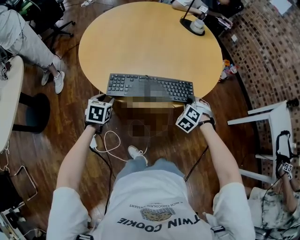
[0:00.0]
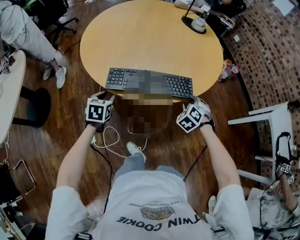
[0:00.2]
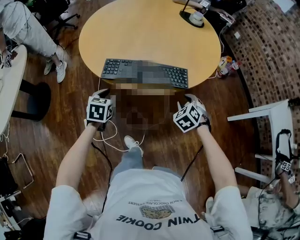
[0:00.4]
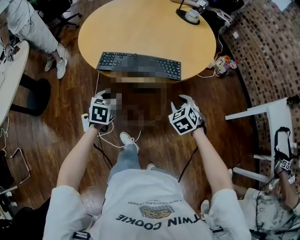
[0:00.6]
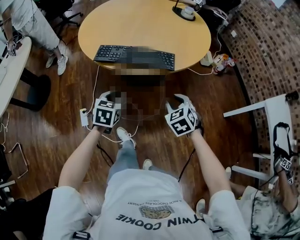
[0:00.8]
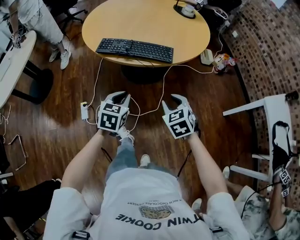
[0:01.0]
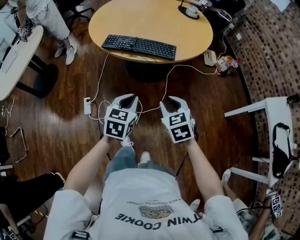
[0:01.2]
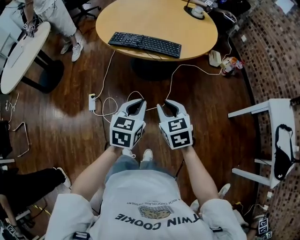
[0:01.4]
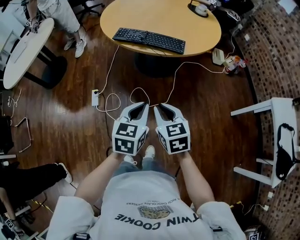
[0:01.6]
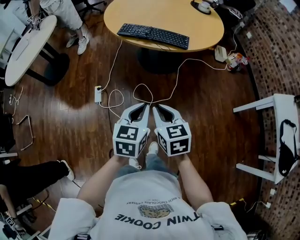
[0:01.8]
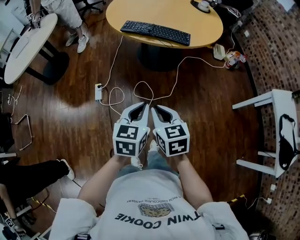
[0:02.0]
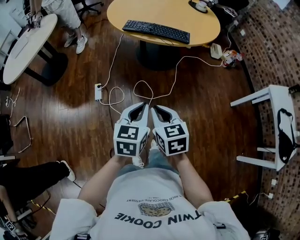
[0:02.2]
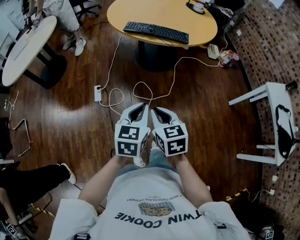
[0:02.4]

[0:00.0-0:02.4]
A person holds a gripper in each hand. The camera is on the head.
0:00.0 to 0:01.2: The right gripper goes approximately 30 cm backward, and changes its angle by some 50 degrees; the left gripper shifts roughly 40 cm backward and to the right, and closes its fingers.
0:01.2 to 0:02.4: Both grippers move backward and to the left, some 25 cm.

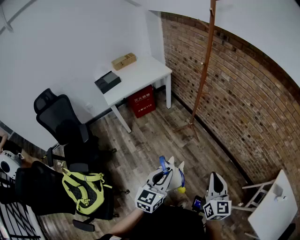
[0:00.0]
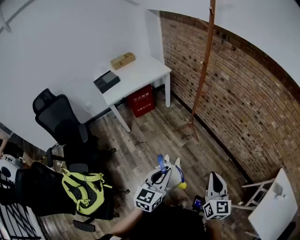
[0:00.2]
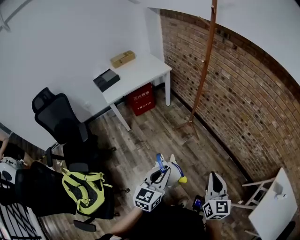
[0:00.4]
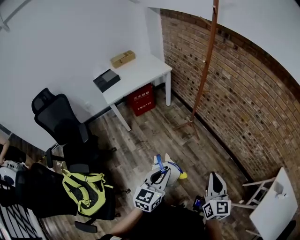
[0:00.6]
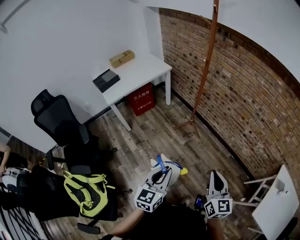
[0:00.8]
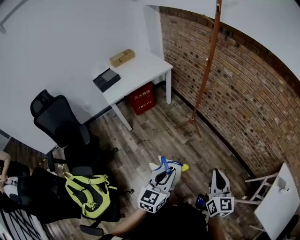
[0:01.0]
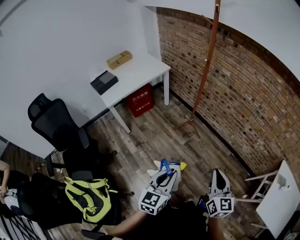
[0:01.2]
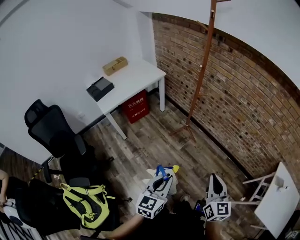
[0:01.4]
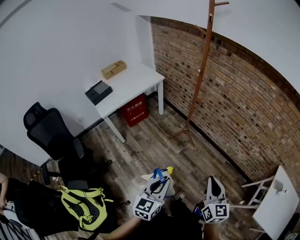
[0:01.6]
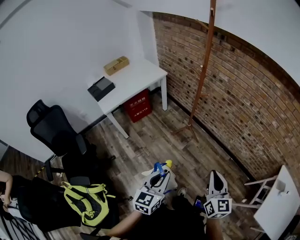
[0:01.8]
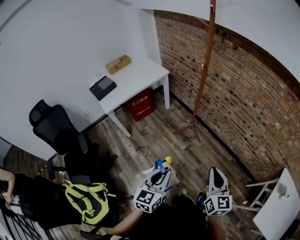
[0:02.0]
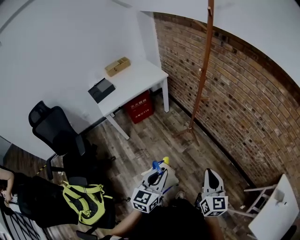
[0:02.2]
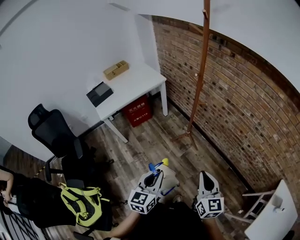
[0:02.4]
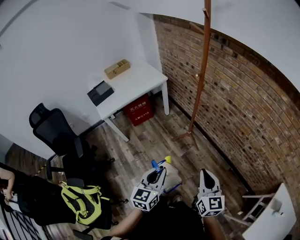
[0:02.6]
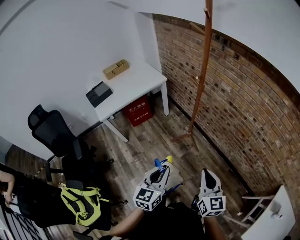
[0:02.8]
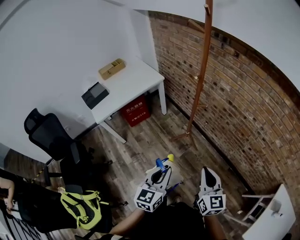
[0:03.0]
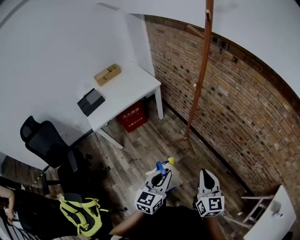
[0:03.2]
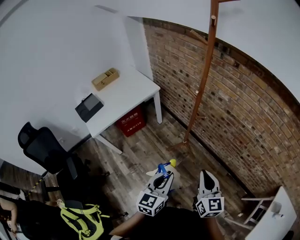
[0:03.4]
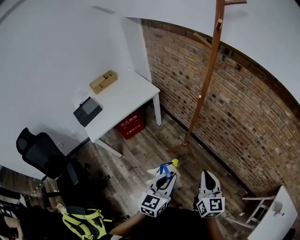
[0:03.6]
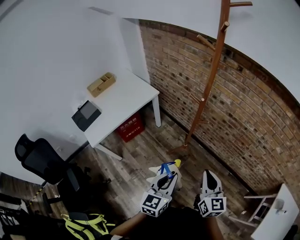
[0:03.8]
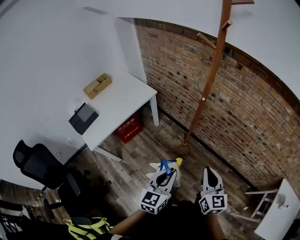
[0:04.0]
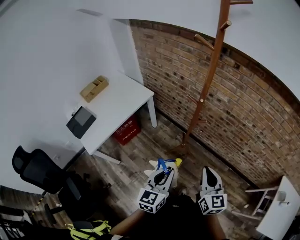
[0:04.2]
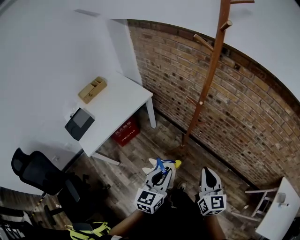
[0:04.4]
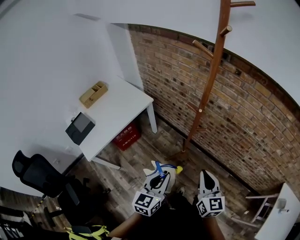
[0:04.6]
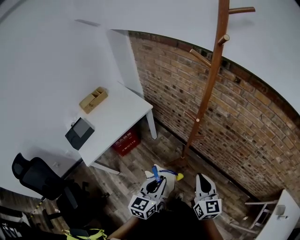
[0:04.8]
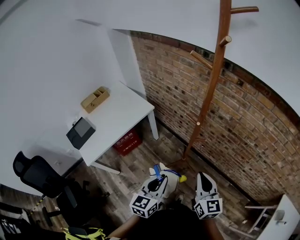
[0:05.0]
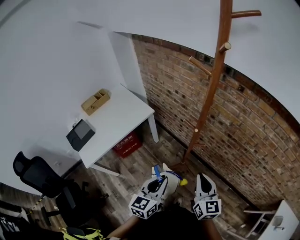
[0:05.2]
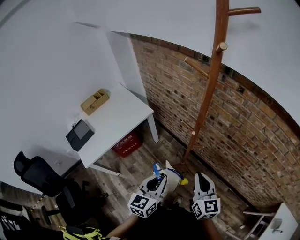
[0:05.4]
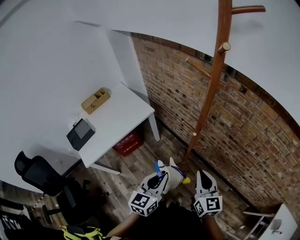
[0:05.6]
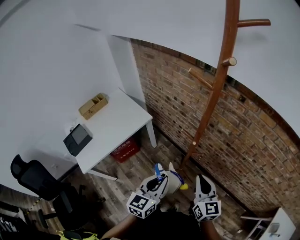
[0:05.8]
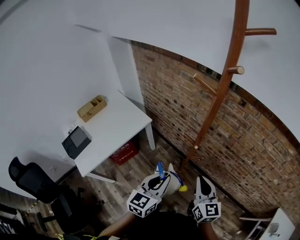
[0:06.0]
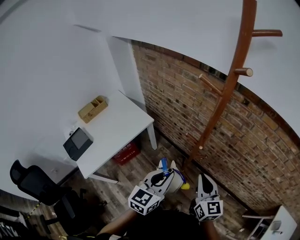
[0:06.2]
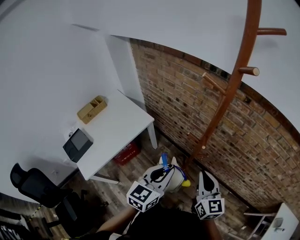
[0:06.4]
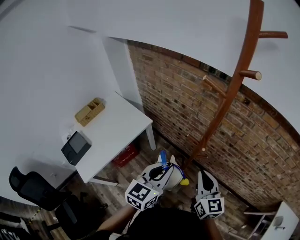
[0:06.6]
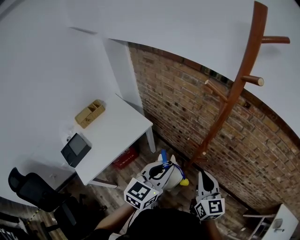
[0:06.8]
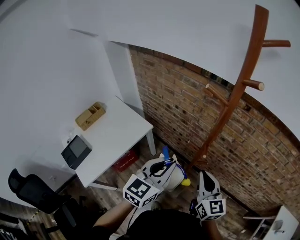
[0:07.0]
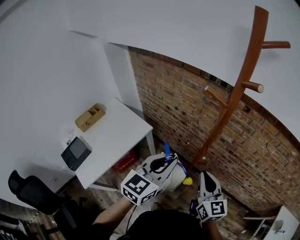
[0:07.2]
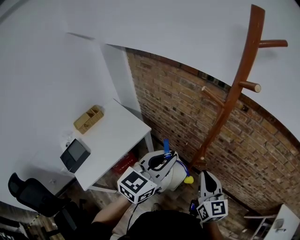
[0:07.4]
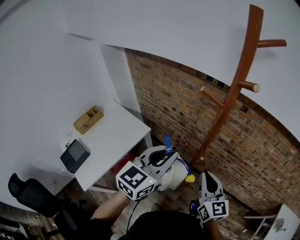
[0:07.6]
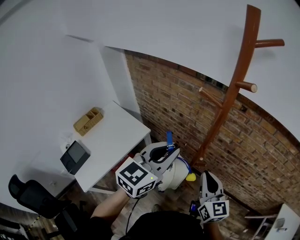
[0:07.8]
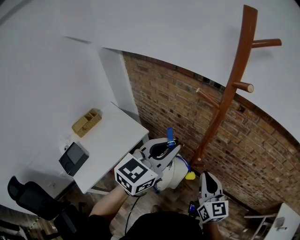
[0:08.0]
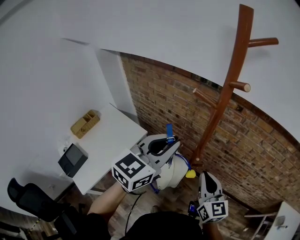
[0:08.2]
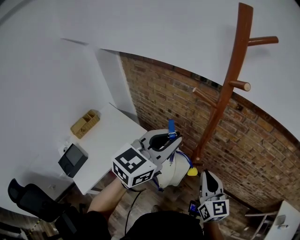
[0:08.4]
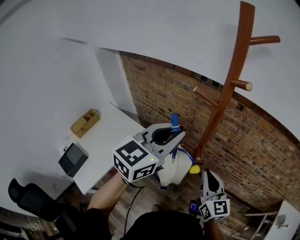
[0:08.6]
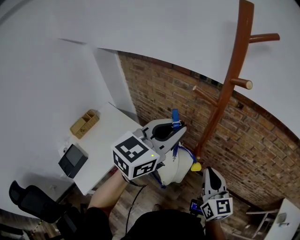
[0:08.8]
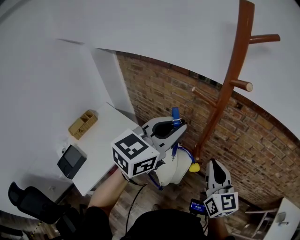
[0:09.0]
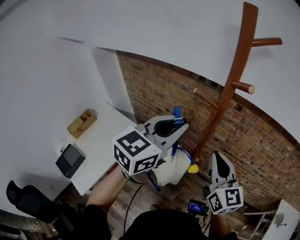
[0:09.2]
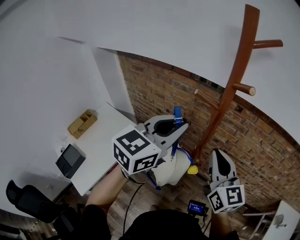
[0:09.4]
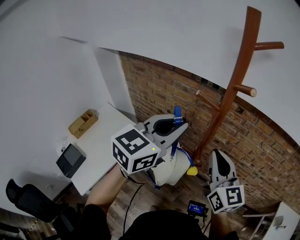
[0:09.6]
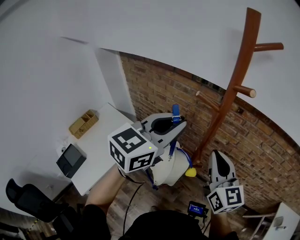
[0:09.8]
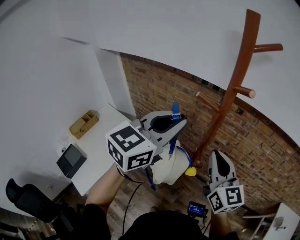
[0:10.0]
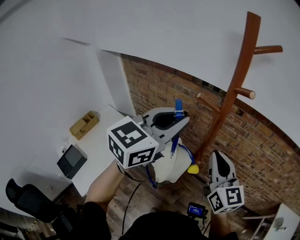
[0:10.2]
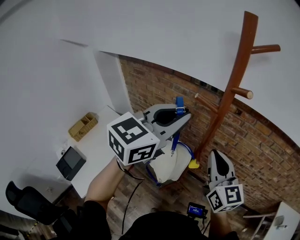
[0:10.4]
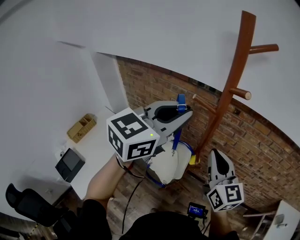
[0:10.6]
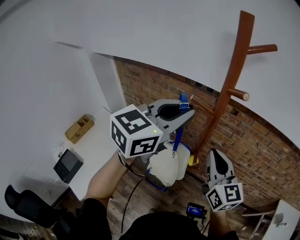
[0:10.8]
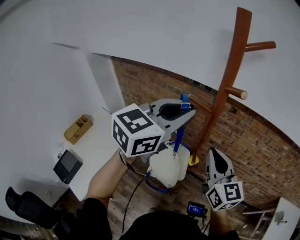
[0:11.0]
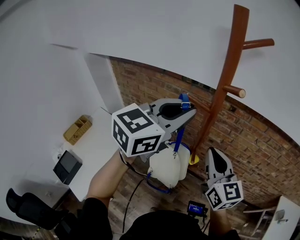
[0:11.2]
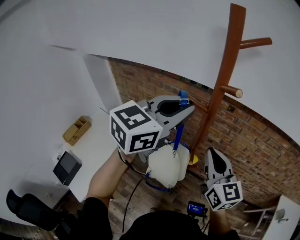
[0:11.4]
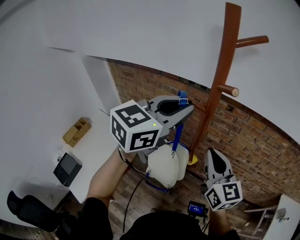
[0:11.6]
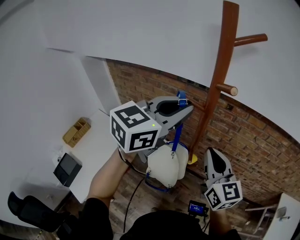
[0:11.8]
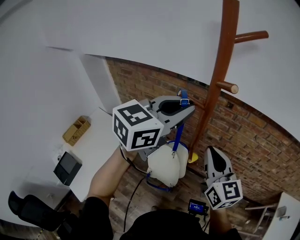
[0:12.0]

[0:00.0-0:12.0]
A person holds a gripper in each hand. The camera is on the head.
0:00.0 to 0:01.6: The two grippers go approximately 5 cm to the left.
0:01.6 to 0:03.0: Both grippers travel together forward, some 20 cm.
0:03.0 to 0:04.4: The two grippers go approximately 15 cm forward and to the left.
0:04.4 to 0:06.0: The grippers both shift forward by approximately 15 cm.
0:06.0 to 0:07.6: The left gripper shifts about 20 cm upward and forward; the right gripper is displaced upward by roughly 5 cm.
0:07.6 to 0:09.0: The left gripper shifts some 10 cm upward and forward, while the right gripper goes some 5 cm upward.
0:09.0 to 0:10.4: The grippers both shift upward by some 5 cm.
0:10.4 to 0:12.0: The left gripper changes place by approximately 5 cm.

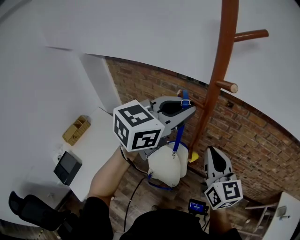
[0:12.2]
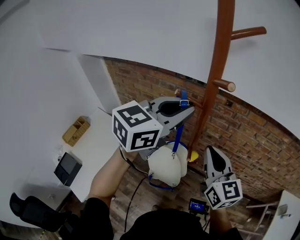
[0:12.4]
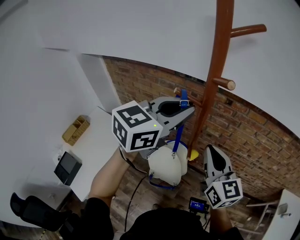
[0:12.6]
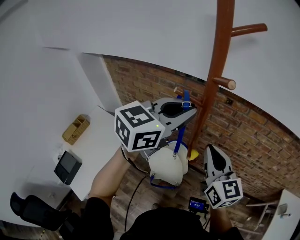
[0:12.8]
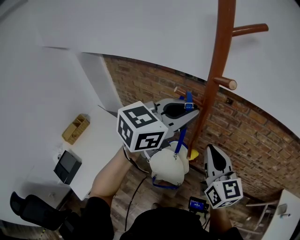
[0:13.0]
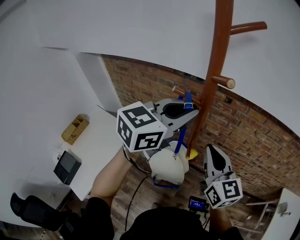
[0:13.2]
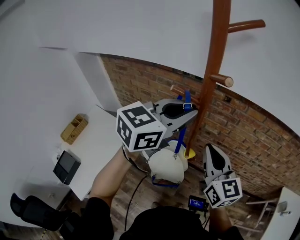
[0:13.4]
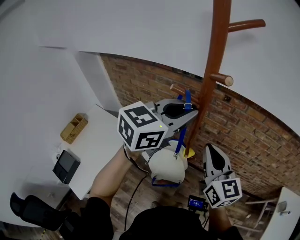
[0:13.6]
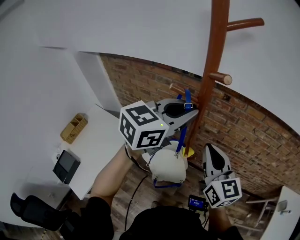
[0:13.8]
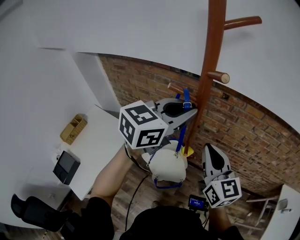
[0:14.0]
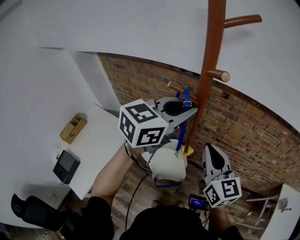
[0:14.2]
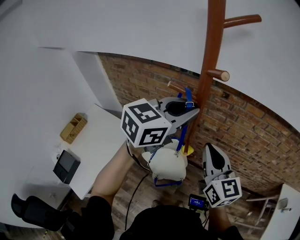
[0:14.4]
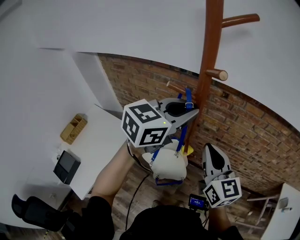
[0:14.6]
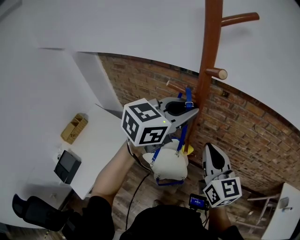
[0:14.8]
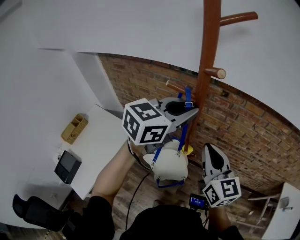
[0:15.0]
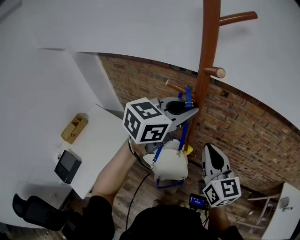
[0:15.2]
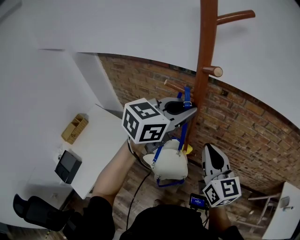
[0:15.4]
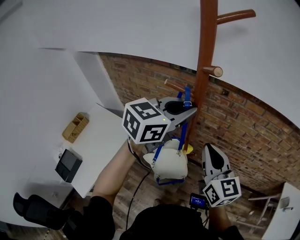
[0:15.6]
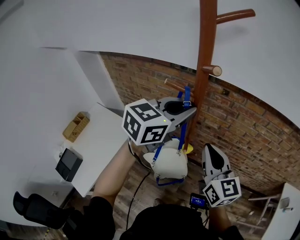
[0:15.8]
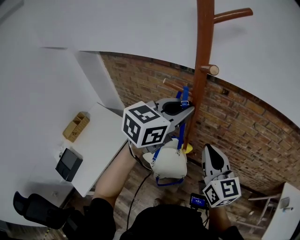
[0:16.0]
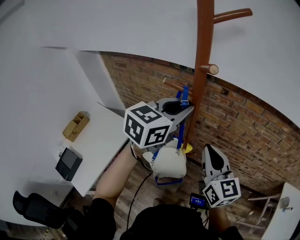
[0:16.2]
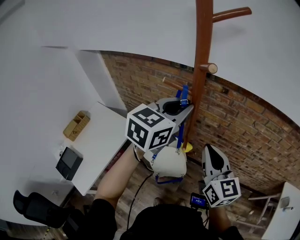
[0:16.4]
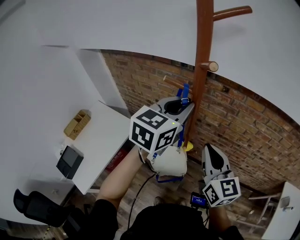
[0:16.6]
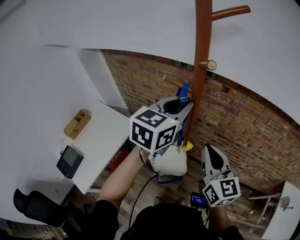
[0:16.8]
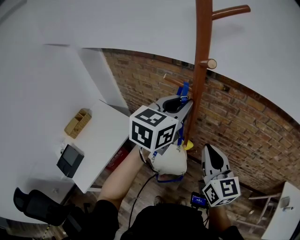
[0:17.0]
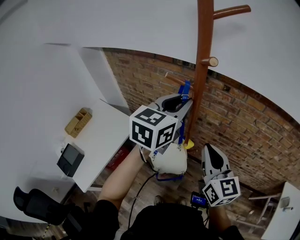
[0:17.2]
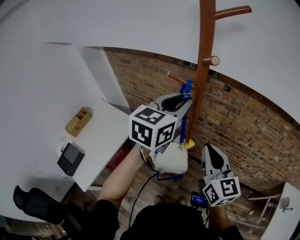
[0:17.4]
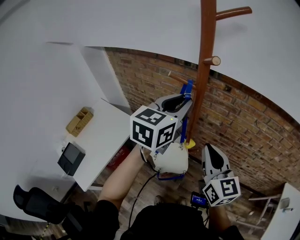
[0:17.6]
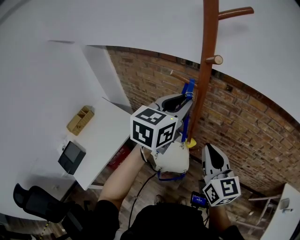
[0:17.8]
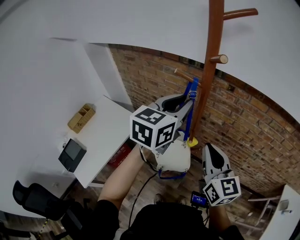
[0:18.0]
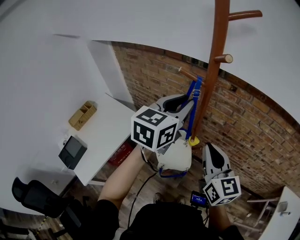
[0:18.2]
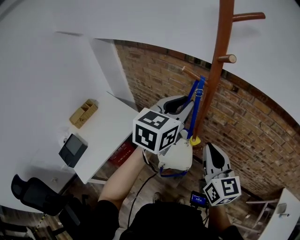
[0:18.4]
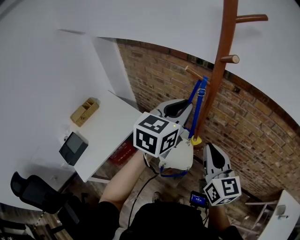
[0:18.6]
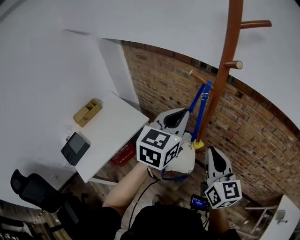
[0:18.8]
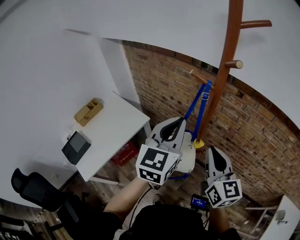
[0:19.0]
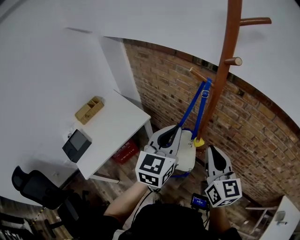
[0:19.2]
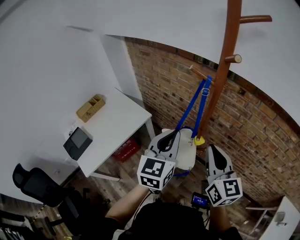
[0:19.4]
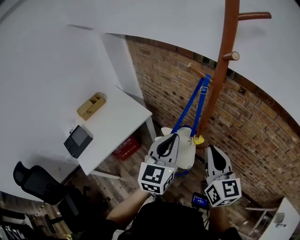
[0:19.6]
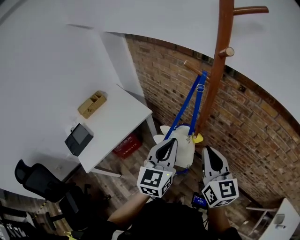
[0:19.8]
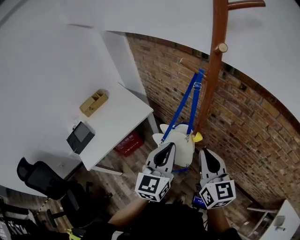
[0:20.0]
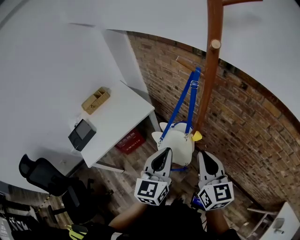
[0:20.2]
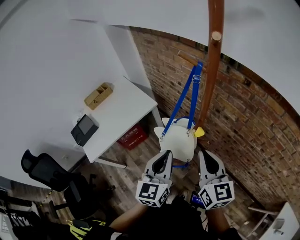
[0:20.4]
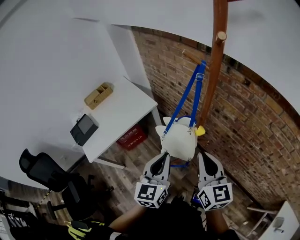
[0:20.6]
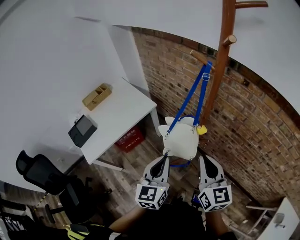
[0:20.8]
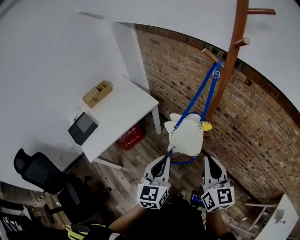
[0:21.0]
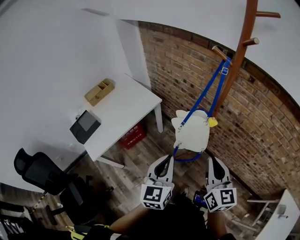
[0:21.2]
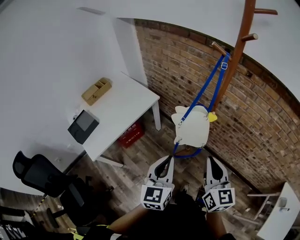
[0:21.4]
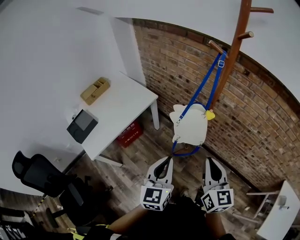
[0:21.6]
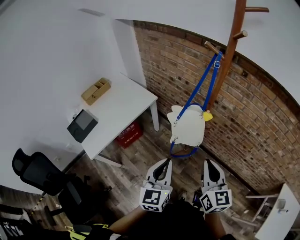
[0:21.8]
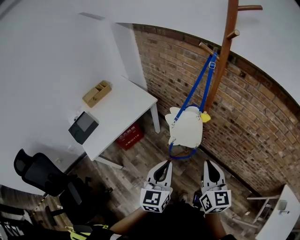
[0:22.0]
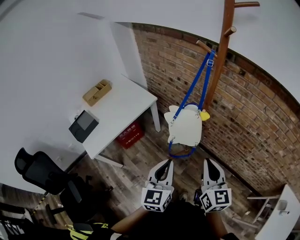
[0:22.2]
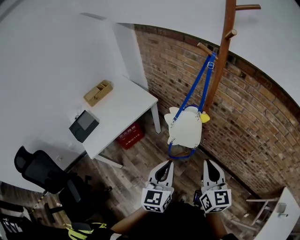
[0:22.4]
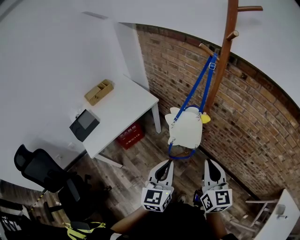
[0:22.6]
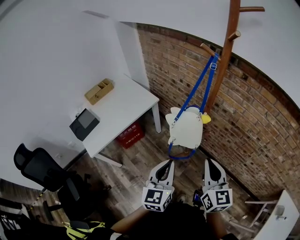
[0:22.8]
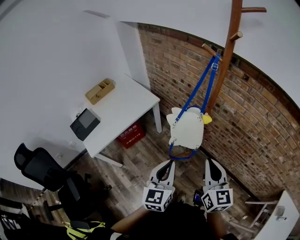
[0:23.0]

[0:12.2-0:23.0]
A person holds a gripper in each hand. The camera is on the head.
0:12.2 to 0:13.8: The grippers make only small movements.
0:13.8 to 0:15.2: The grippers make only small movements.
0:15.2 to 0:16.8: The left gripper rotates roughly 20 degrees.
0:16.8 to 0:18.4: The left gripper ends up approximately 5 cm from where it was.
0:18.4 to 0:20.0: The left gripper is displaced downward and backward by roughly 20 cm, and swivels approximately 30 degrees.
0:20.0 to 0:21.4: The right gripper goes roughly 15 cm backward and to the left, while the left gripper is displaced backward, to the left and downward by roughly 20 cm.
0:21.4 to 0:23.0: The left gripper changes place by approximately 5 cm.
